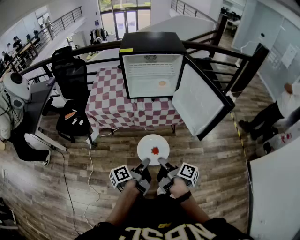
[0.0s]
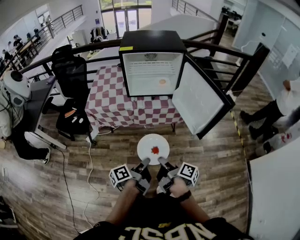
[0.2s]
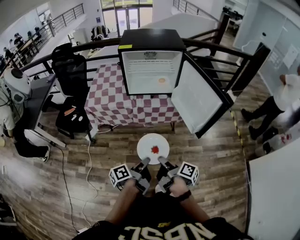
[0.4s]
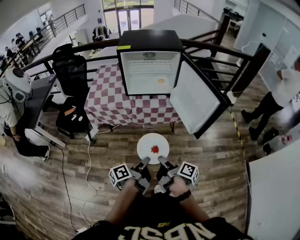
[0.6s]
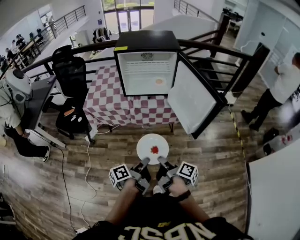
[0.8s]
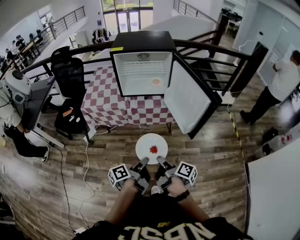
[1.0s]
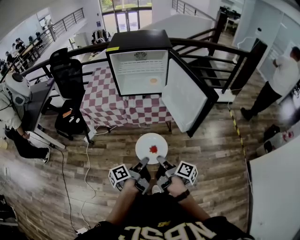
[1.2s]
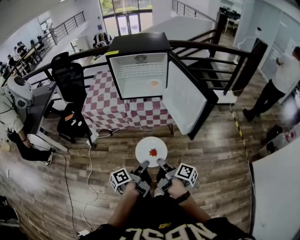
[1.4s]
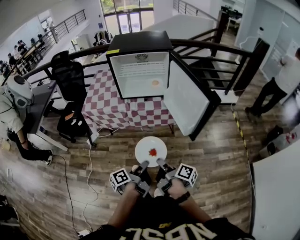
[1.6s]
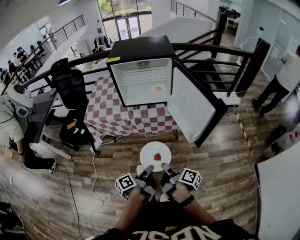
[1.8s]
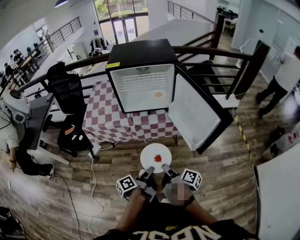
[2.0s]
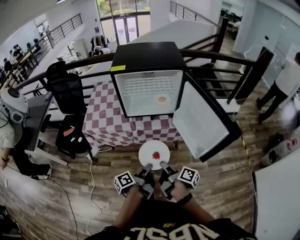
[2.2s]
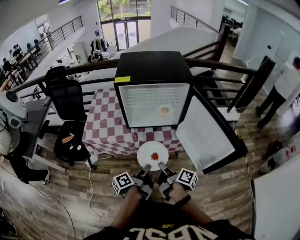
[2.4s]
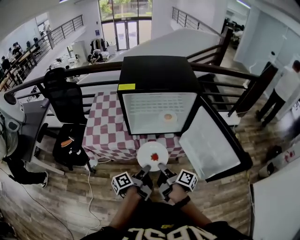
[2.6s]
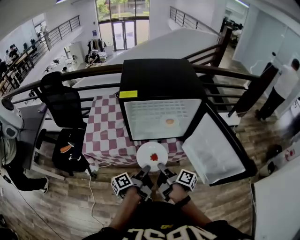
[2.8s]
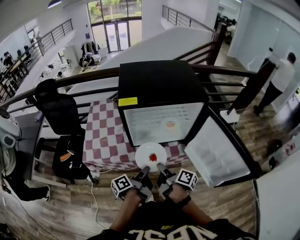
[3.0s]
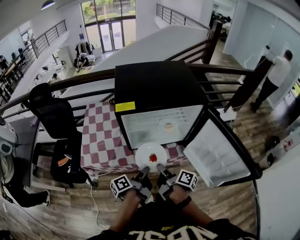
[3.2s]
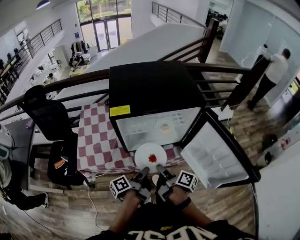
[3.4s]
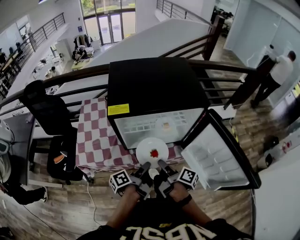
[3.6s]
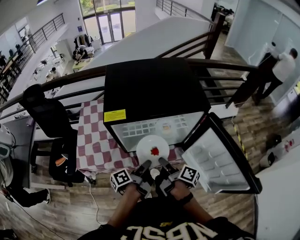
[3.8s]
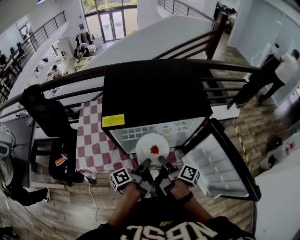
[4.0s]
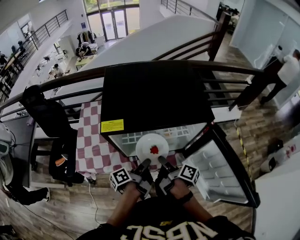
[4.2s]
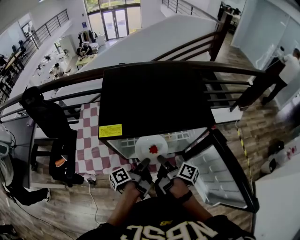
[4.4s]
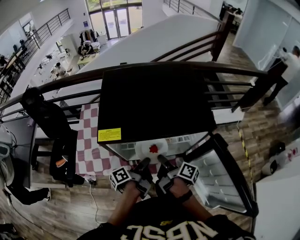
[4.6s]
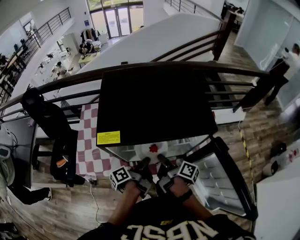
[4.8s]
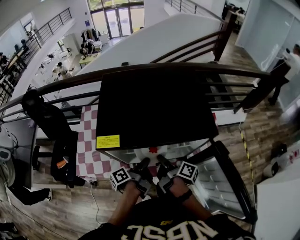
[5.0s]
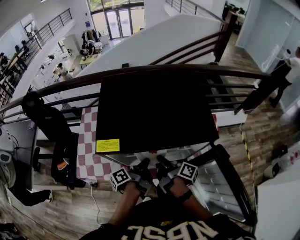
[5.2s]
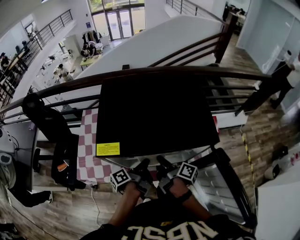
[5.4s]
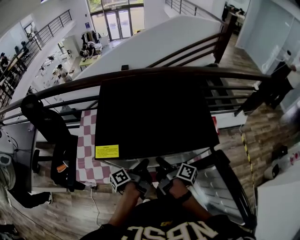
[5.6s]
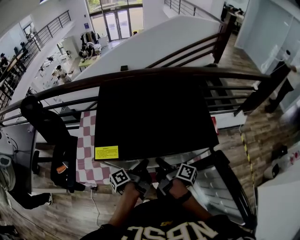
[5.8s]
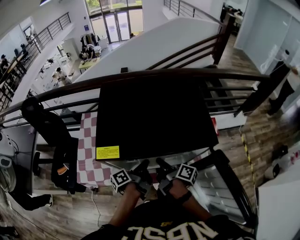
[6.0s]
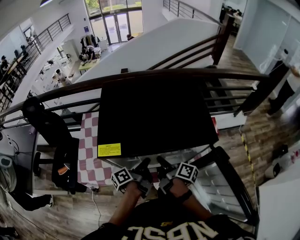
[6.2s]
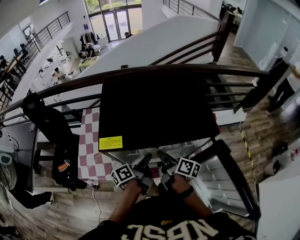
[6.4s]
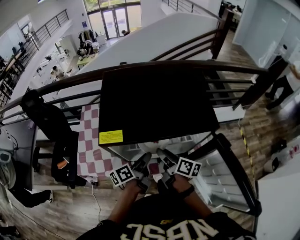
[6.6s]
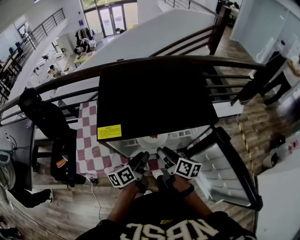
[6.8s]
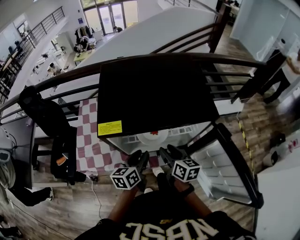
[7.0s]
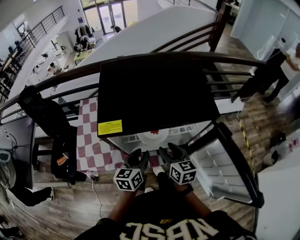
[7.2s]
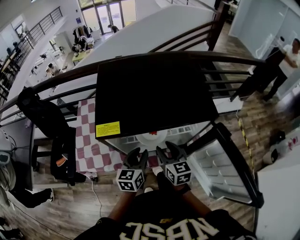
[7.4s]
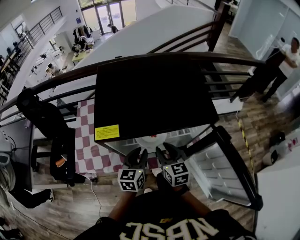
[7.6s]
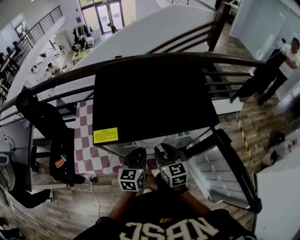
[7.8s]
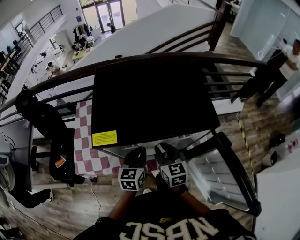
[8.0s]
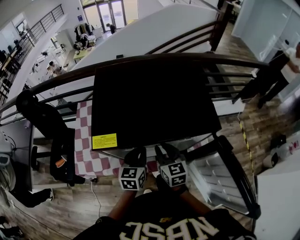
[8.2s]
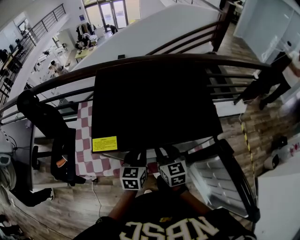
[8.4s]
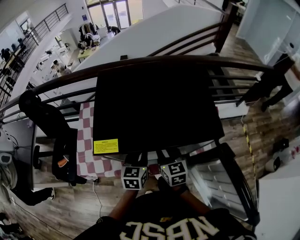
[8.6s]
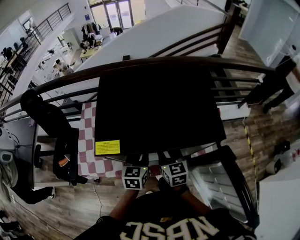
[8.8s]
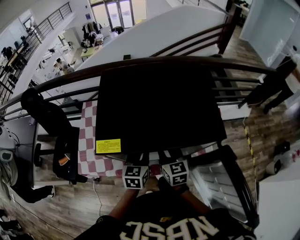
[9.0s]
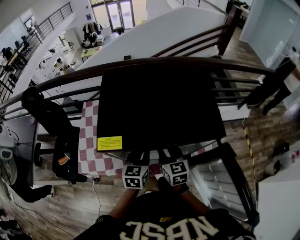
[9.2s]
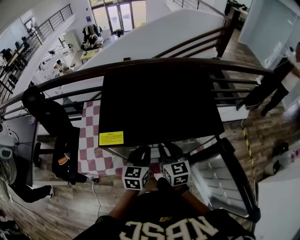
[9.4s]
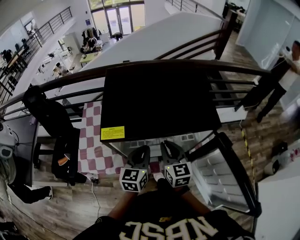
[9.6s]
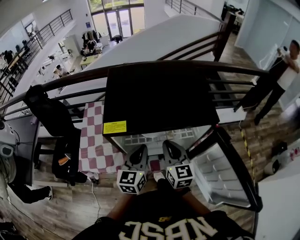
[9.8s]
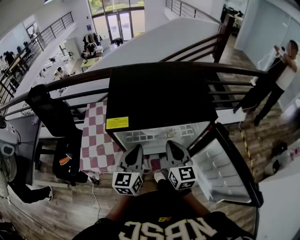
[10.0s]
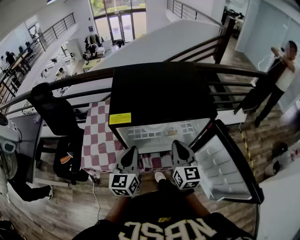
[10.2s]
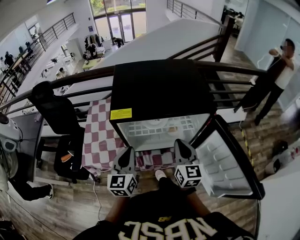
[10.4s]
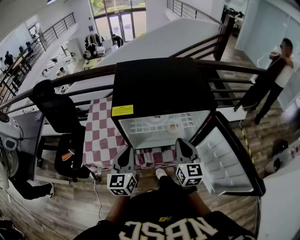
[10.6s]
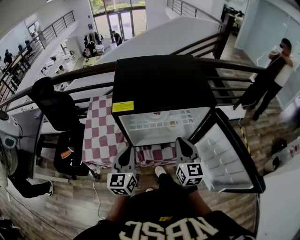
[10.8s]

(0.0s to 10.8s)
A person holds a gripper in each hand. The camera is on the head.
0.0s - 1.6s: The grippers both shift to the right by approximately 5 cm.
1.6s - 3.0s: The two grippers go approximately 35 cm forward.
3.0s - 4.6s: The two grippers go some 15 cm forward.
4.6s - 6.2s: The left gripper shifts some 5 cm forward.
6.2s - 7.8s: The right gripper twists about 70 degrees counterclockwise, seen from behind, and opens; the left gripper twists about 70 degrees clockwise, seen from behind, and opens, then closes once more.
7.8s - 9.2s: The grippers move only a little.
9.2s - 10.8s: The left gripper is displaced backward, to the left and upward by approximately 20 cm, and rotates some 20 degrees, while the right gripper shifts some 15 cm backward and upward.

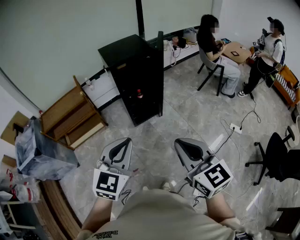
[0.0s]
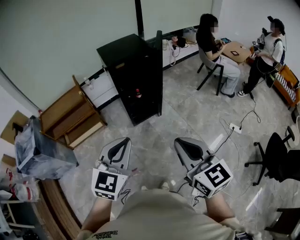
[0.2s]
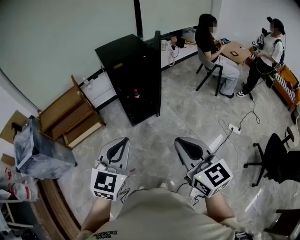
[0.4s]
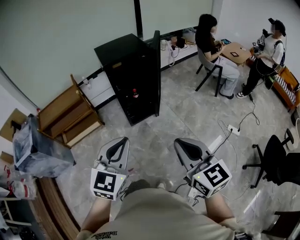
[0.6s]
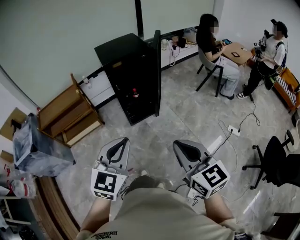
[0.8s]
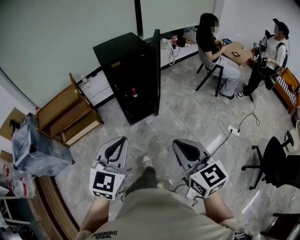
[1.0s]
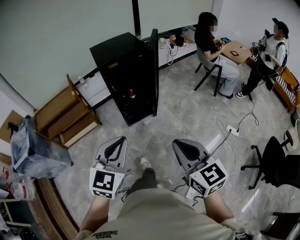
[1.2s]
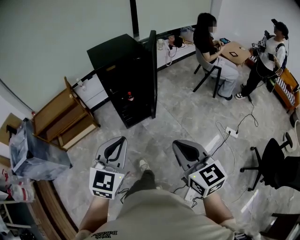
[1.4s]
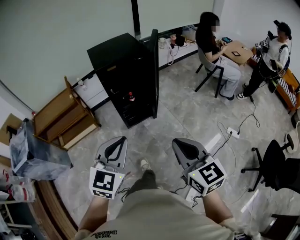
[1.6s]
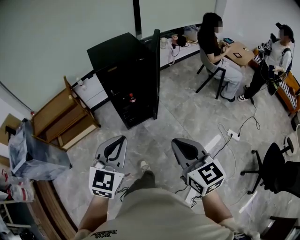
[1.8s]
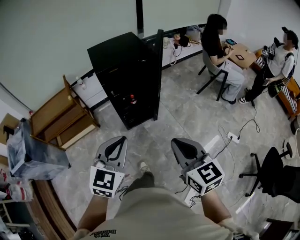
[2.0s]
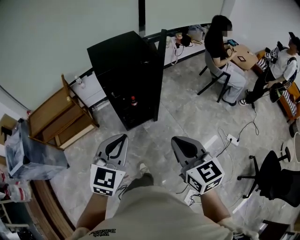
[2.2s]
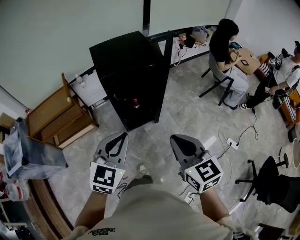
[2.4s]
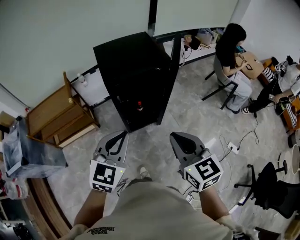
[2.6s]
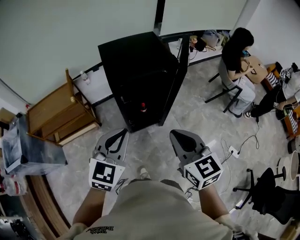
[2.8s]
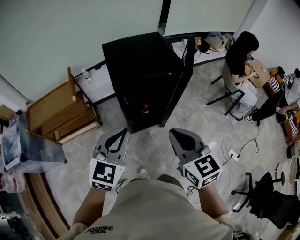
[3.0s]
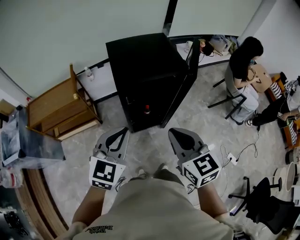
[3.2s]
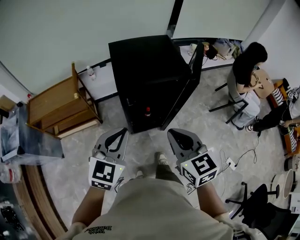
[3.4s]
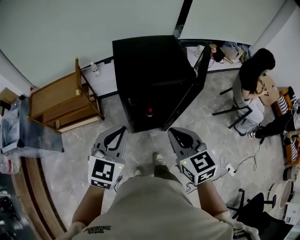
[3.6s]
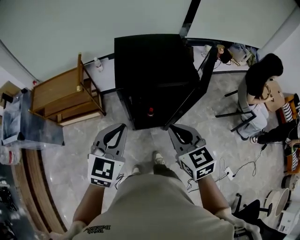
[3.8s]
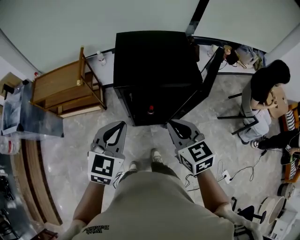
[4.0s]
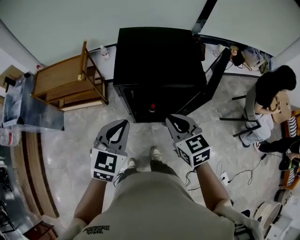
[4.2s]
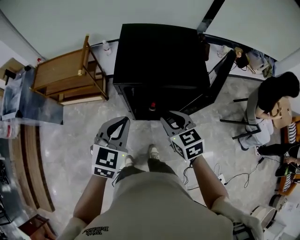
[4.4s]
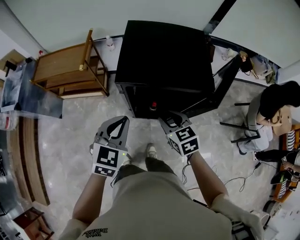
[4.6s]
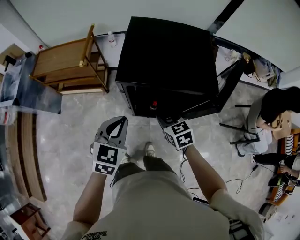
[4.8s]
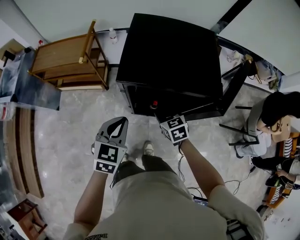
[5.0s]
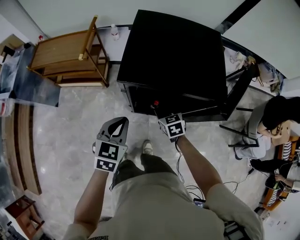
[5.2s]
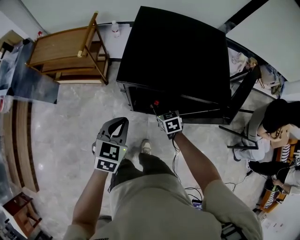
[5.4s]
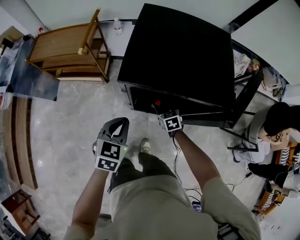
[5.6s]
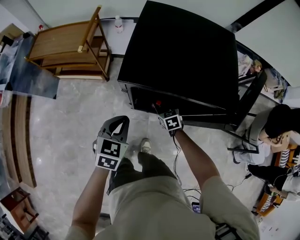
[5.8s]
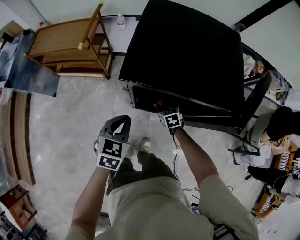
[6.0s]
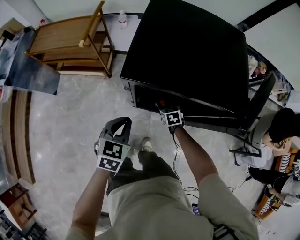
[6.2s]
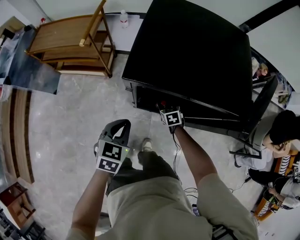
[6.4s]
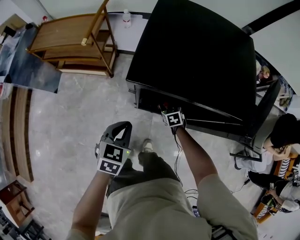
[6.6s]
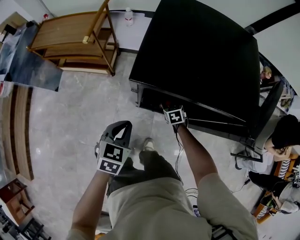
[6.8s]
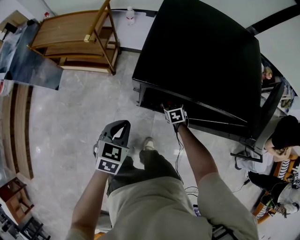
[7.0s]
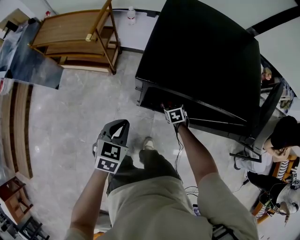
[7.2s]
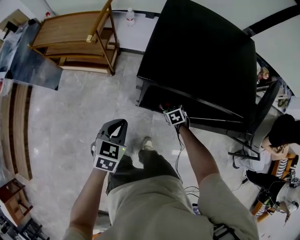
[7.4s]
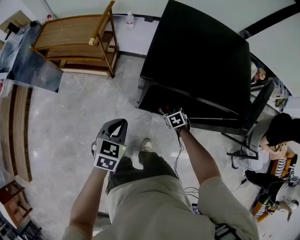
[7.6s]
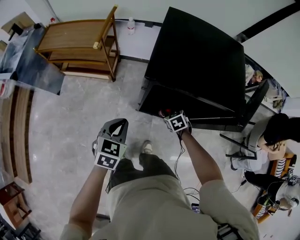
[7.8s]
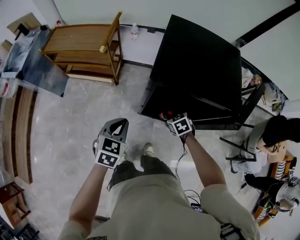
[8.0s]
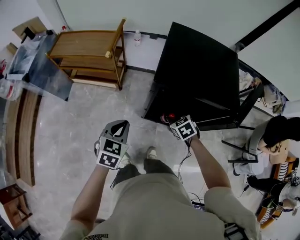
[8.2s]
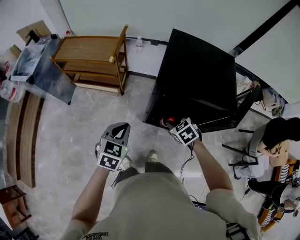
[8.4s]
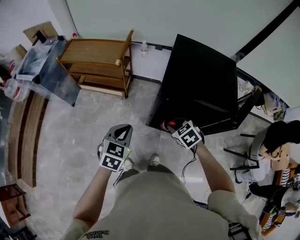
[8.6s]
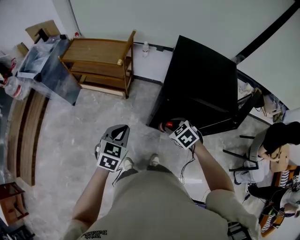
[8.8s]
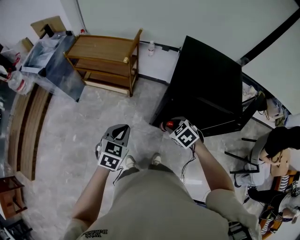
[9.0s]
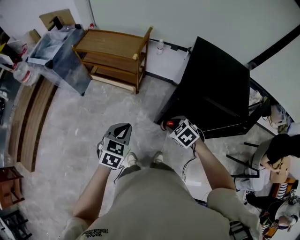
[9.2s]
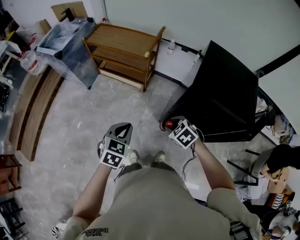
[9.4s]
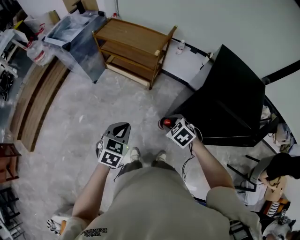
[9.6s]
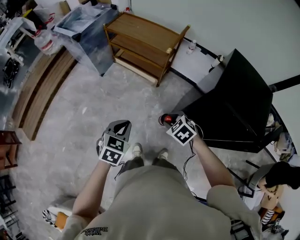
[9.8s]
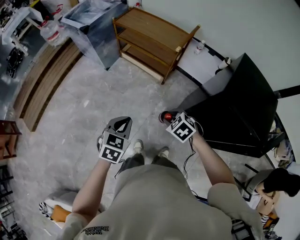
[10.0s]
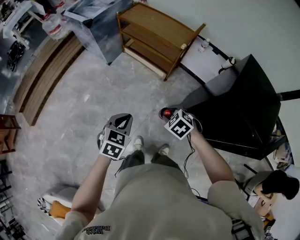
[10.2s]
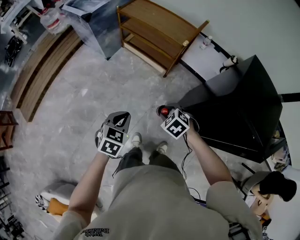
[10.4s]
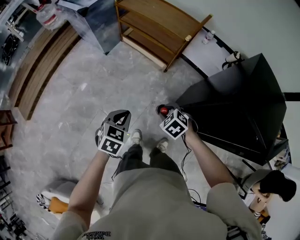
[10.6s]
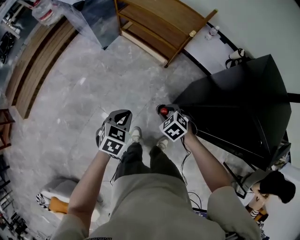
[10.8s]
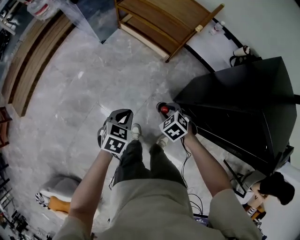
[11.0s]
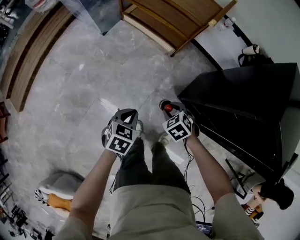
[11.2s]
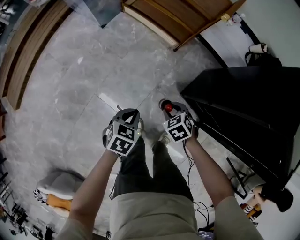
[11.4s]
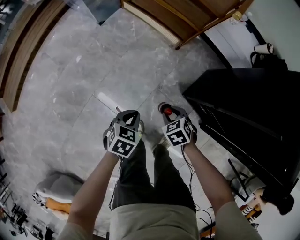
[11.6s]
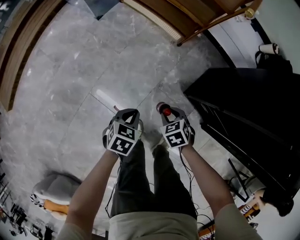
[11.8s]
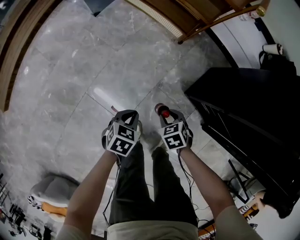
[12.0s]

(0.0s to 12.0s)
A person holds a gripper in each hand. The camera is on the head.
0.0s - 1.6s: The left gripper heads forward and to the right, covering some 10 cm. The right gripper is displaced forward, to the right and downward by about 15 cm.
1.6s - 3.0s: Both grippers move forward, approximately 30 cm.
3.0s - 4.4s: The right gripper shifts approximately 25 cm forward and downward, and rotates about 30 degrees. Meanwhile the left gripper moves forward, downward and to the right, about 15 cm, and turns by about 20 degrees.
4.4s - 6.0s: The left gripper travels downward by roughly 20 cm; the right gripper is displaced downward by some 35 cm.
6.0s - 7.6s: The left gripper heads to the left, covering about 5 cm.
7.6s - 9.0s: The right gripper moves upward and to the left, some 30 cm, and changes its angle by approximately 30 degrees; the left gripper travels upward, to the left and backward by roughly 15 cm.
9.0s - 10.4s: Both grippers travel together to the left, about 20 cm. The left gripper turns by approximately 20 degrees, while the right gripper swivels approximately 30 degrees.
10.4s - 12.0s: Both grippers travel together downward, approximately 40 cm. The left gripper swivels some 20 degrees; the right gripper swivels some 20 degrees.

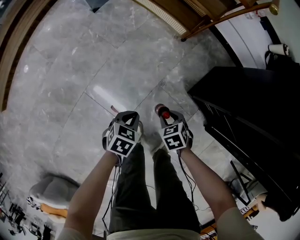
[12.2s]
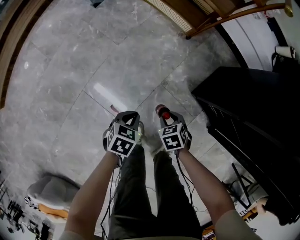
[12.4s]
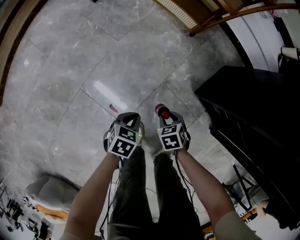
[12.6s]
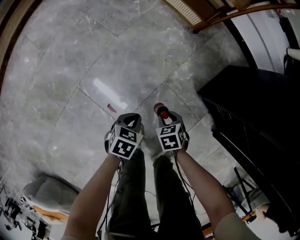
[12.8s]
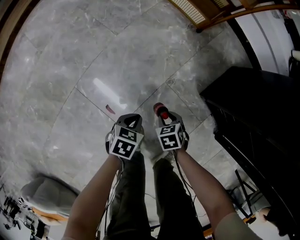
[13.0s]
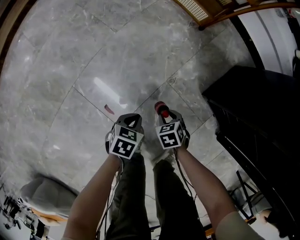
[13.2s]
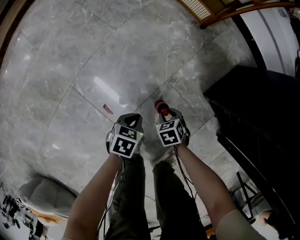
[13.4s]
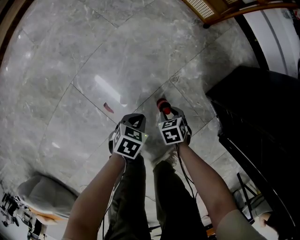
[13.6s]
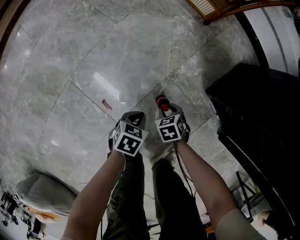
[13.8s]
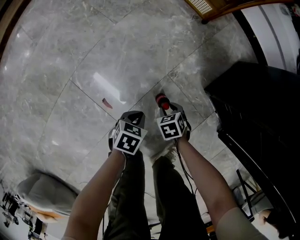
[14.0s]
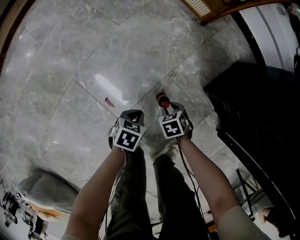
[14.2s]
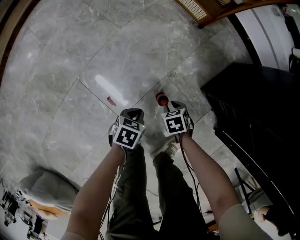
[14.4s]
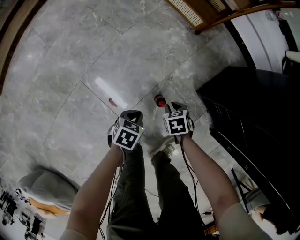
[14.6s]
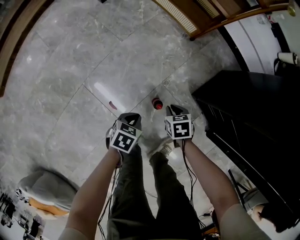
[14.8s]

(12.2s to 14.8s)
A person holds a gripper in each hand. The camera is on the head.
12.2s - 13.4s: The grippers both shift downward by some 25 cm.
13.4s - 14.8s: Both grippers travel together upward, some 15 cm.
